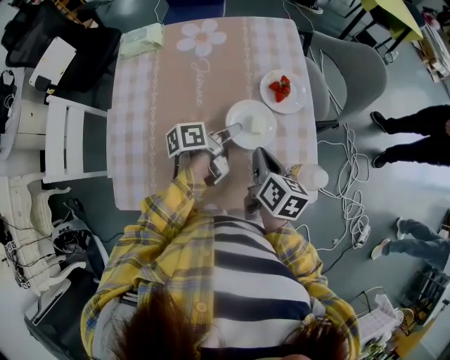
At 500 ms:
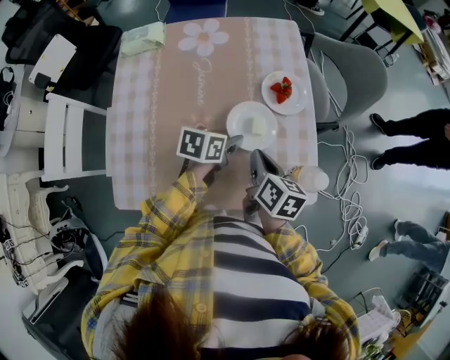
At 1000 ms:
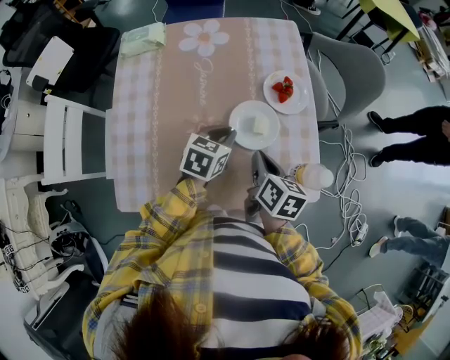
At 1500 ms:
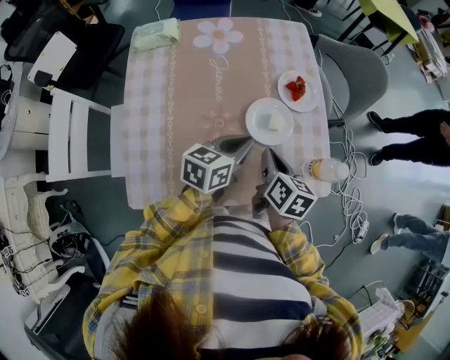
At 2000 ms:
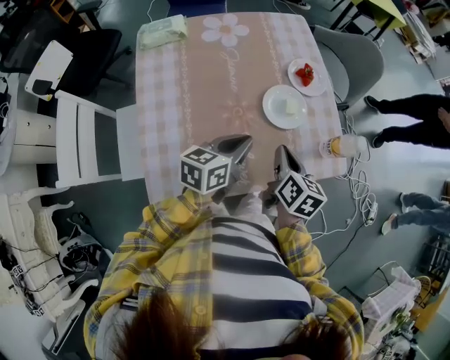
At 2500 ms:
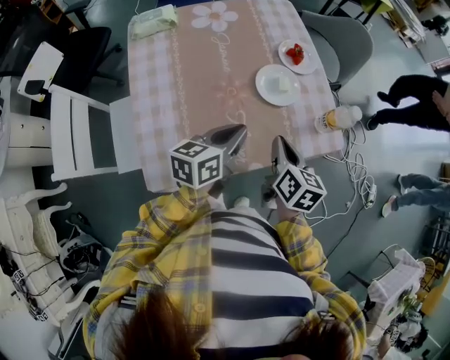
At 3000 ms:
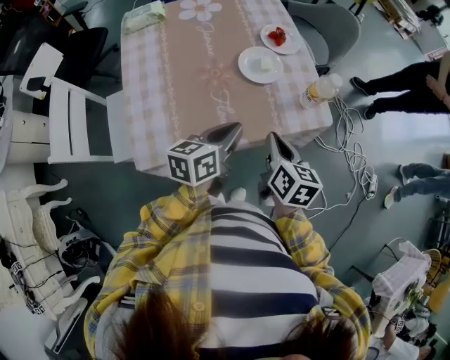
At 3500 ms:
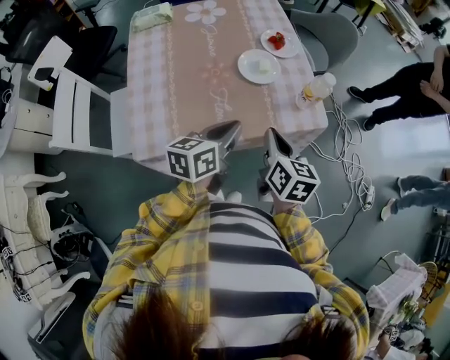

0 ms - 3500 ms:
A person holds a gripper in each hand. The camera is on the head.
0 ms - 2000 ms: The right gripper moves about 10 cm.
2000 ms - 3500 ms: The right gripper ends up about 15 cm from where it was.

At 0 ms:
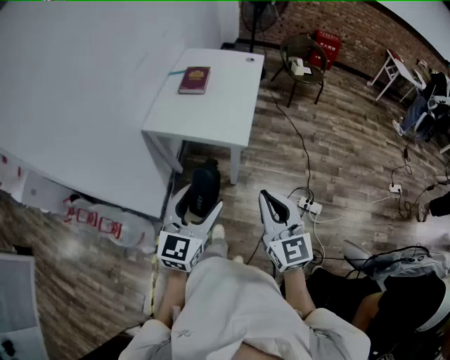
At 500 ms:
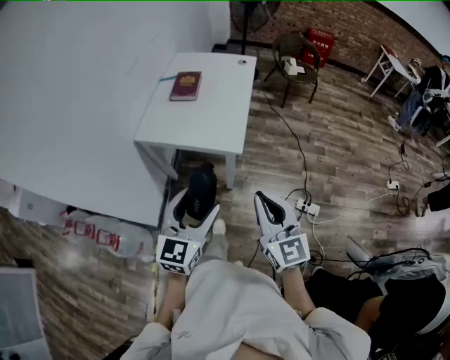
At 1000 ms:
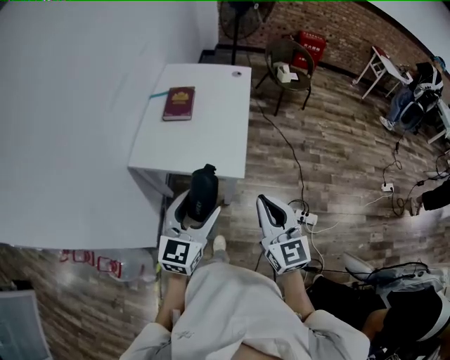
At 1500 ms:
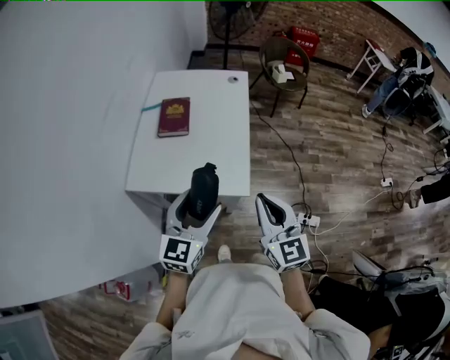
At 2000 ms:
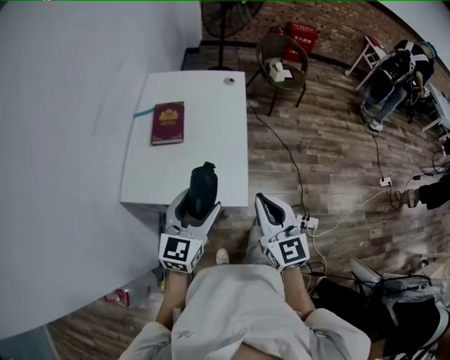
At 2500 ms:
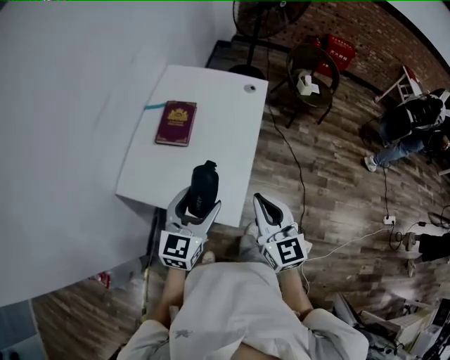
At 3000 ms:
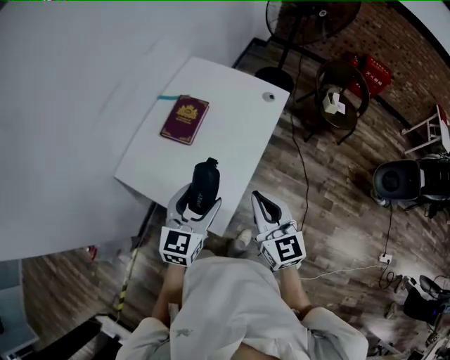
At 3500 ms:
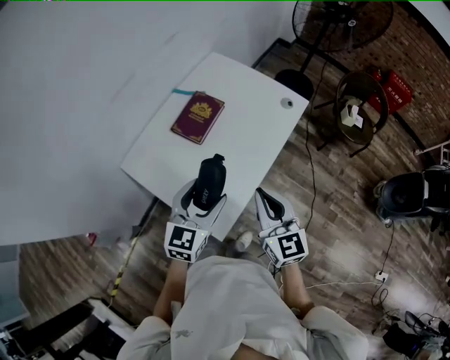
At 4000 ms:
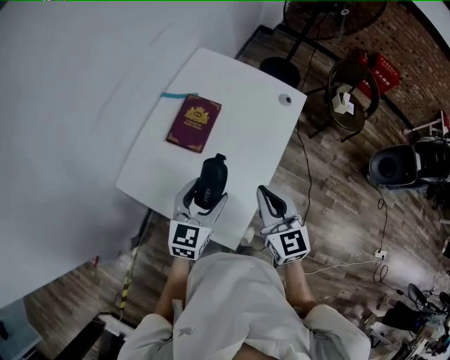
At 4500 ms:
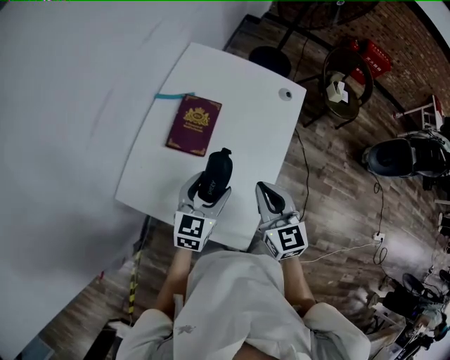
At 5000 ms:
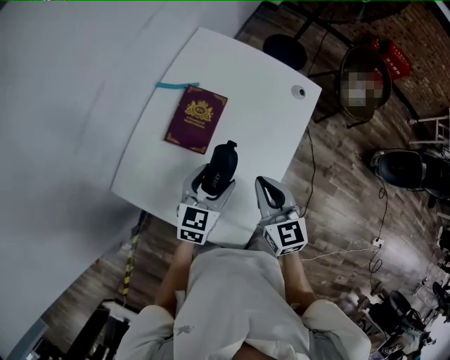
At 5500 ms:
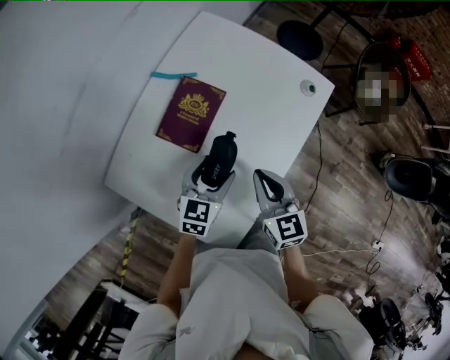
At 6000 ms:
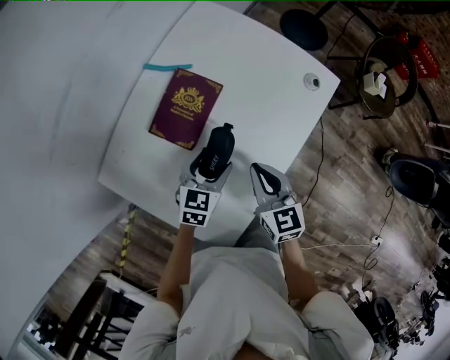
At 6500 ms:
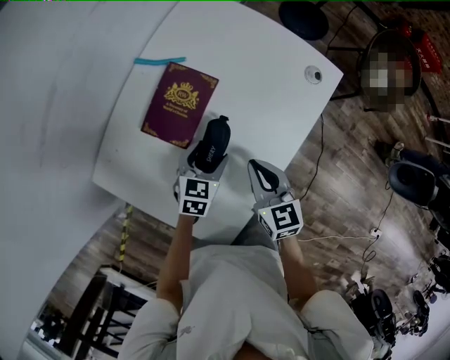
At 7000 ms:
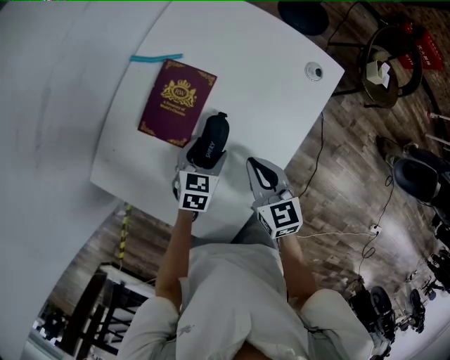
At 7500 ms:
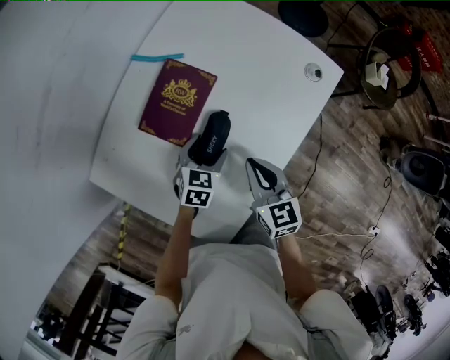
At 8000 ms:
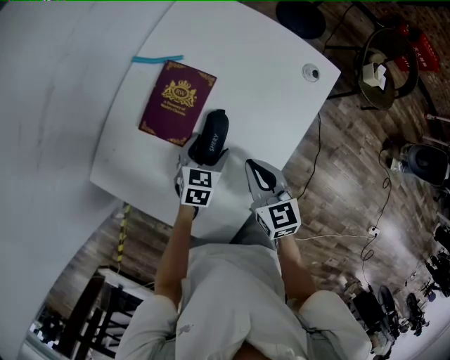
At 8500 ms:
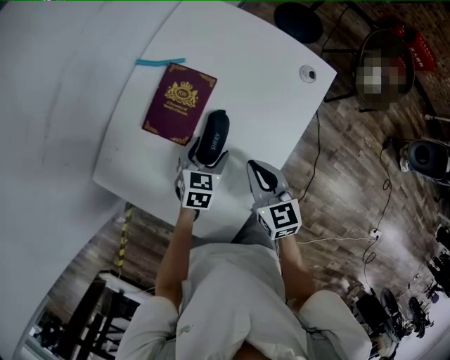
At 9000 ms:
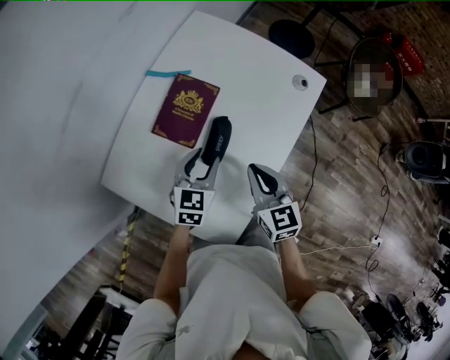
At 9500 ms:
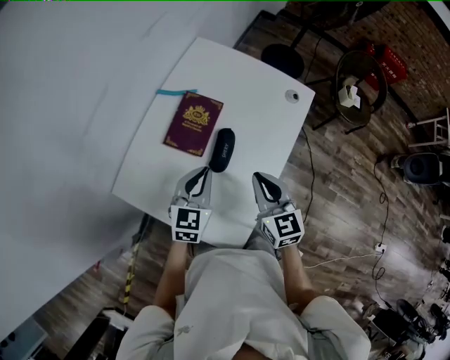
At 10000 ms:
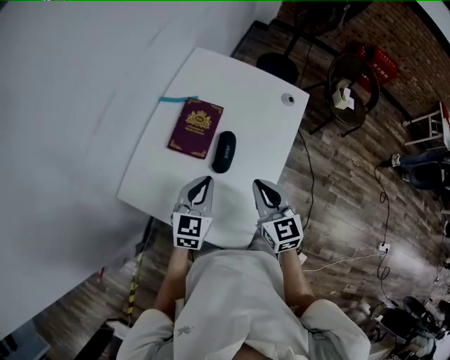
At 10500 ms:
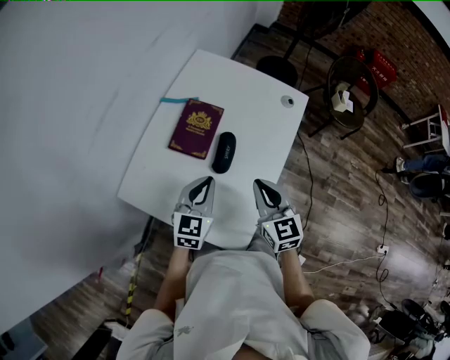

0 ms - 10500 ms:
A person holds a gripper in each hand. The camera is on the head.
0 ms - 2000 ms: Both grippers move forward, roughly 35 cm.
2000 ms - 4000 ms: The left gripper moves roughly 20 cm, and turns by about 20 degrees; the right gripper changes place by roughly 25 cm, and swivels some 30 degrees.
4000 ms - 6500 ms: Both grippers move downward and forward, about 20 cm. The left gripper turns by about 20 degrees.
6500 ms - 8500 ms: There are only small adjustments of the grippers.
8500 ms - 10500 ms: The right gripper goes some 10 cm upward and backward. The left gripper shifts roughly 20 cm upward and backward, changes its angle by about 30 degrees, and closes.

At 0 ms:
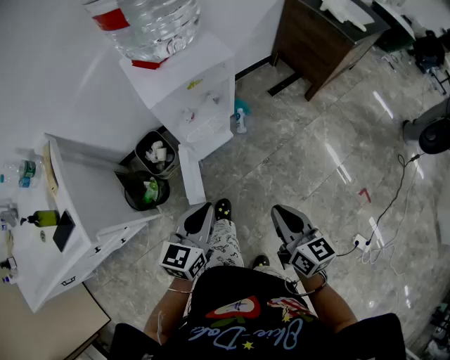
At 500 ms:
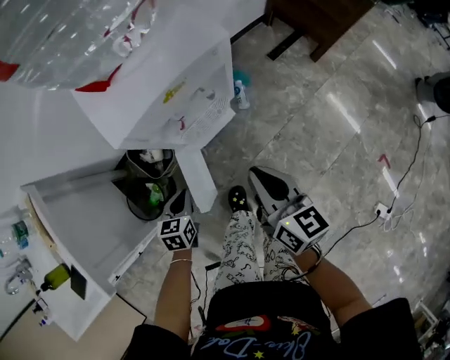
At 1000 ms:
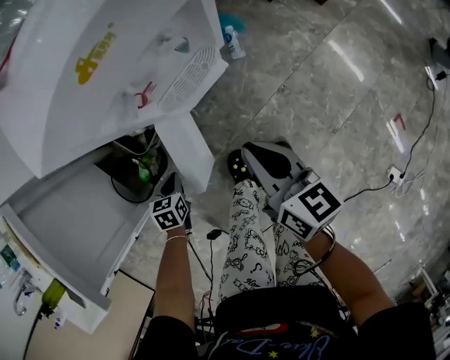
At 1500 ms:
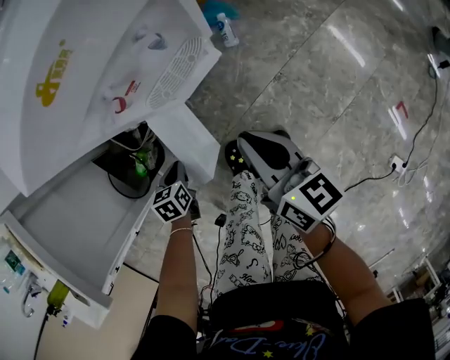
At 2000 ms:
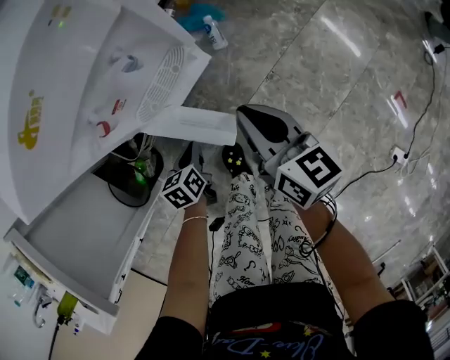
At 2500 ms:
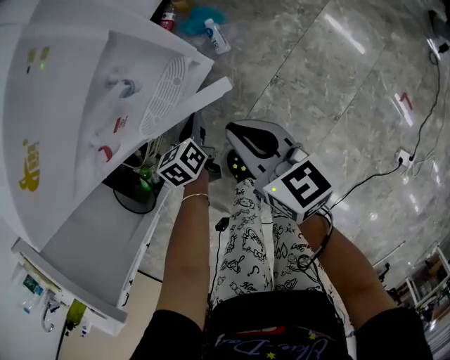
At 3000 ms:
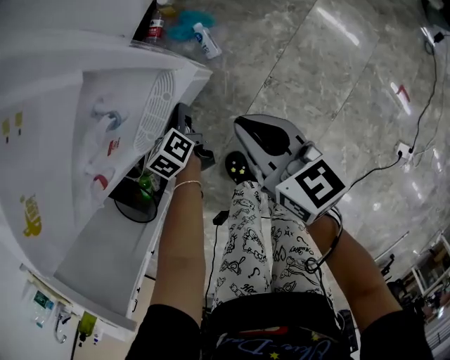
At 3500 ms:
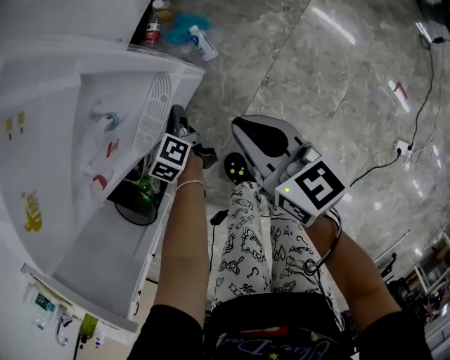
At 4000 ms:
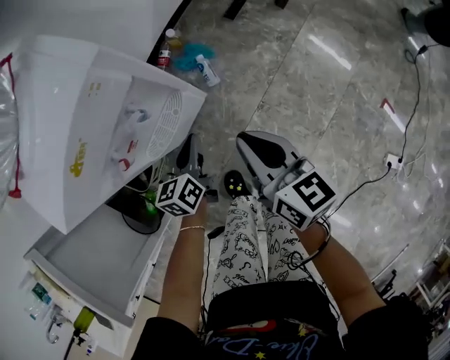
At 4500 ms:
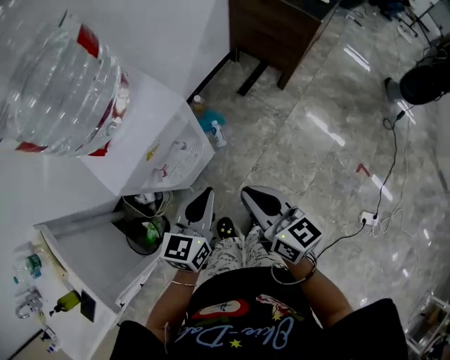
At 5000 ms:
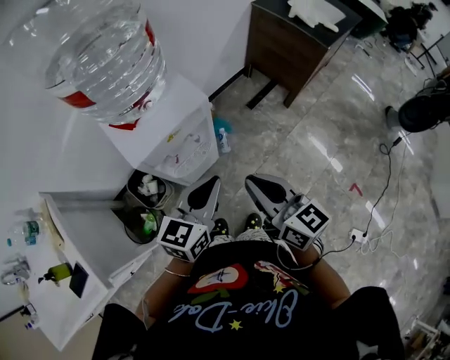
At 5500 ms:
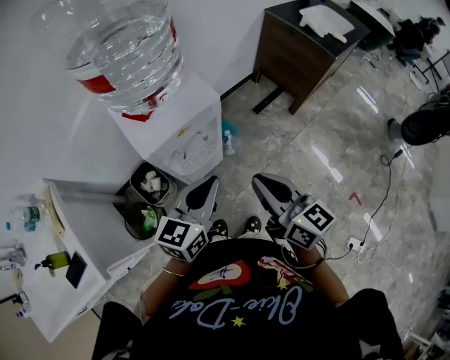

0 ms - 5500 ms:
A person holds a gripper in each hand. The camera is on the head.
0 ms - 2000 ms: The left gripper goes roughly 40 cm downward and forward, and points its fingers approximately 30 degrees further downward; the right gripper is displaced forward and downward by about 35 cm.
2000 ms - 3500 ms: The left gripper heads forward, covering some 15 cm, and rotates roughly 30 degrees.
3500 ms - 5500 ms: Both grippers move upward, some 40 cm. The left gripper turns by approximately 50 degrees; the right gripper turns by about 20 degrees.

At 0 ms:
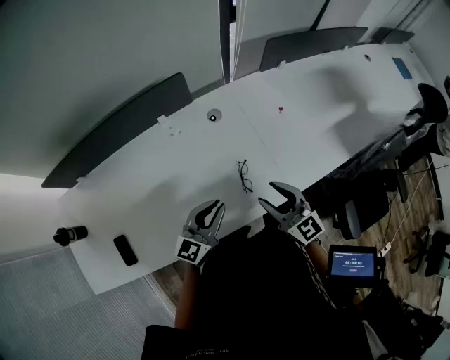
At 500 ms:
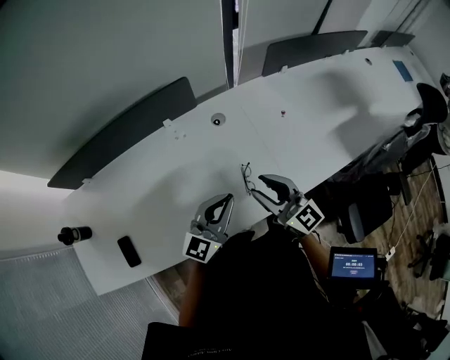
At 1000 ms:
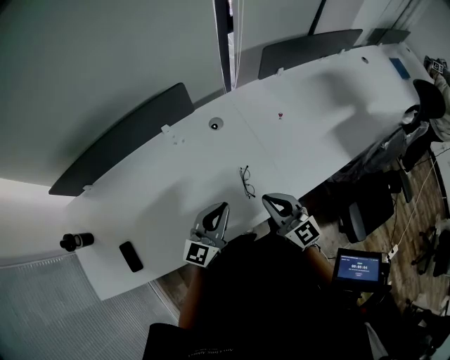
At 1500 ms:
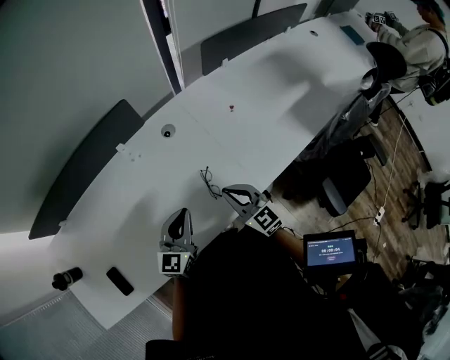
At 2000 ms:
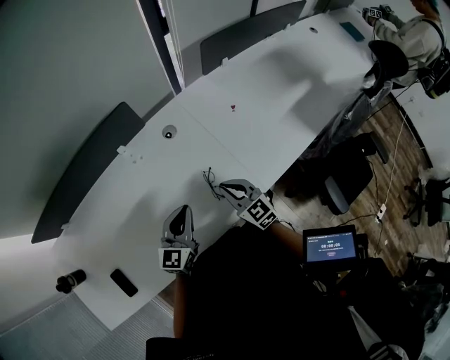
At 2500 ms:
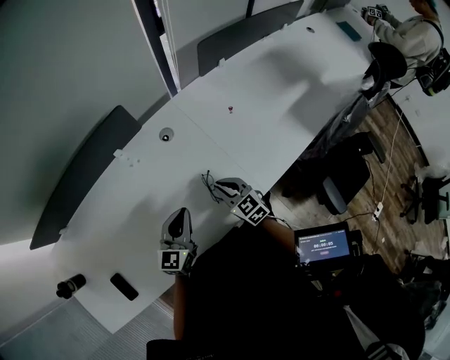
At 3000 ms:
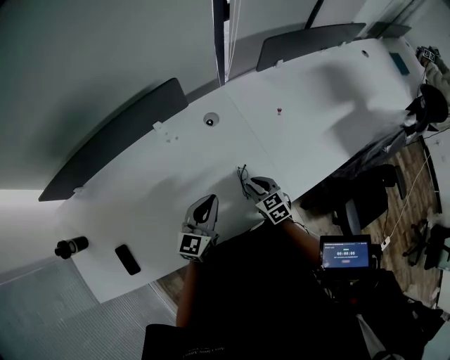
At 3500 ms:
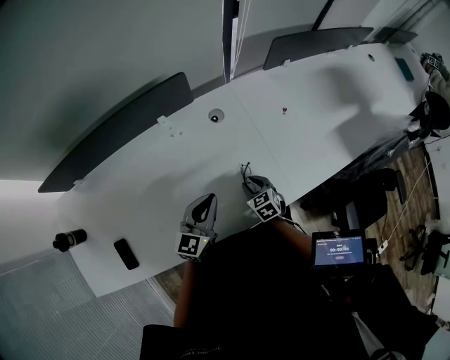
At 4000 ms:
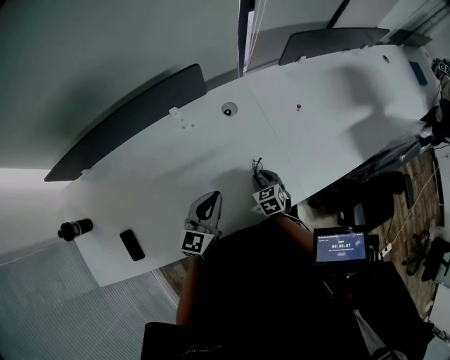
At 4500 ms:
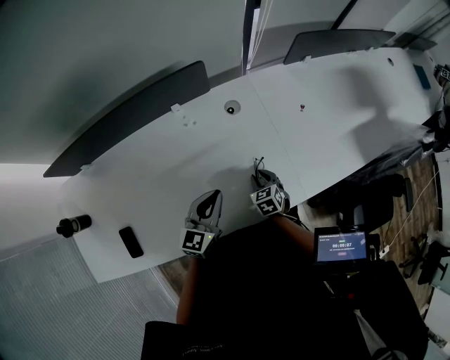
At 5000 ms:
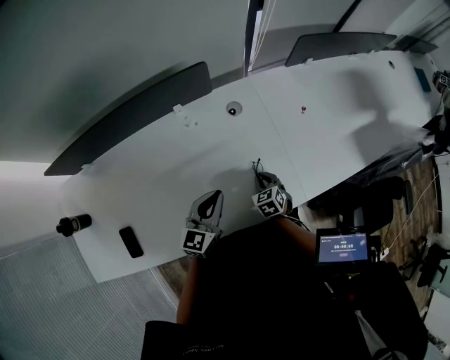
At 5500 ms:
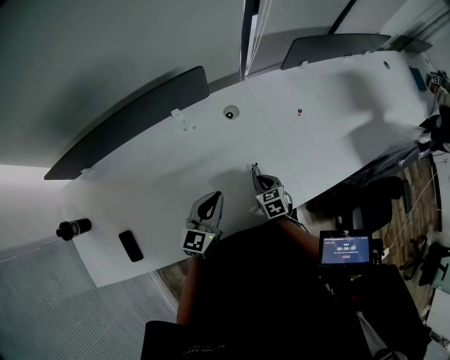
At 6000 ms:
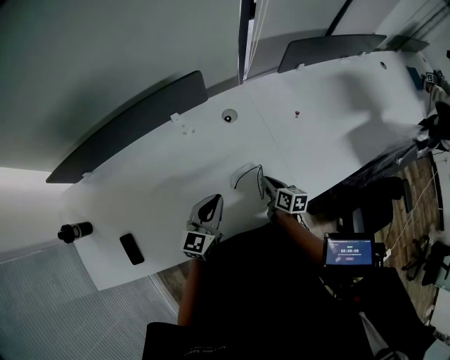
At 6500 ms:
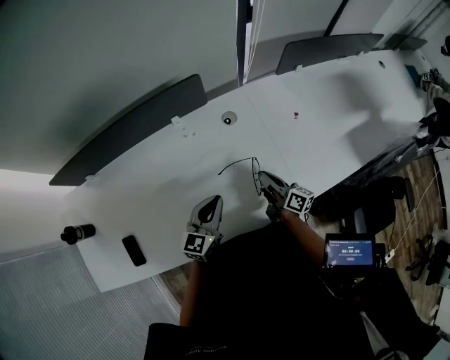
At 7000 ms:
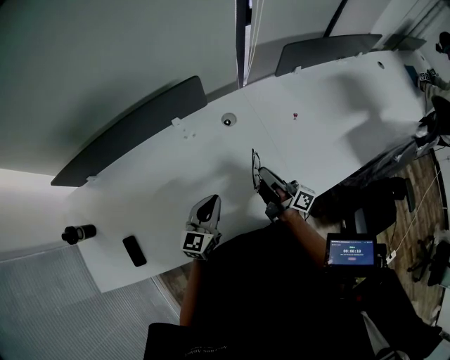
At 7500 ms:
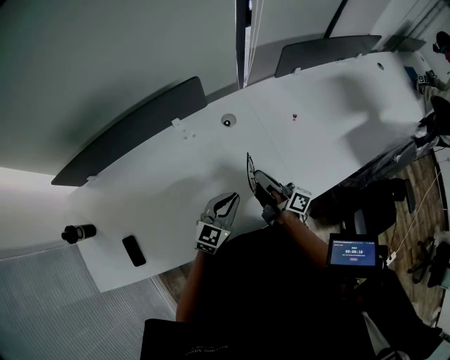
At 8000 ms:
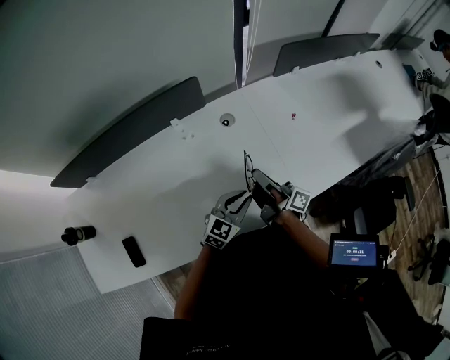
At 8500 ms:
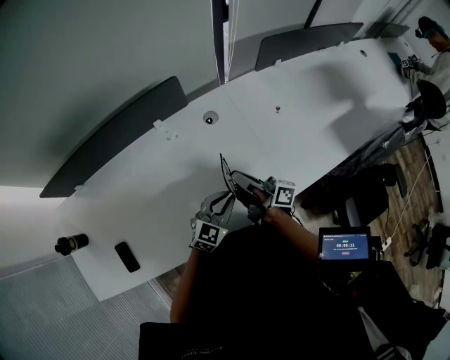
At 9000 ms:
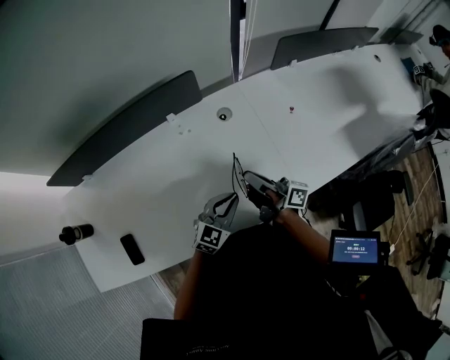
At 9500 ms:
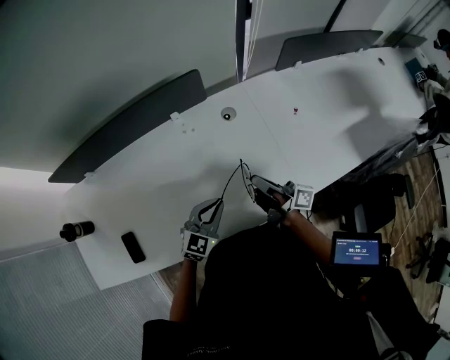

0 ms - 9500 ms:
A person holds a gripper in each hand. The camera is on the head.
0 ms - 2000 ms: The right gripper heads downward, covering approximately 10 cm, and closes.
2000 ms - 4000 ms: The right gripper heads downward, covering some 15 cm, tips its fingers downward by roughly 30 degrees, and opens up. Meanwhile the left gripper travels to the left by roughly 5 cm.
4000 ms - 5500 ms: The right gripper closes its fingers.
5500 ms - 7500 ms: The right gripper shifts about 15 cm upward, and tips its fingers upward by approximately 60 degrees. Meanwhile the left gripper shifts roughly 5 cm to the right.
7500 ms - 9500 ms: The left gripper is displaced to the left by about 5 cm.
